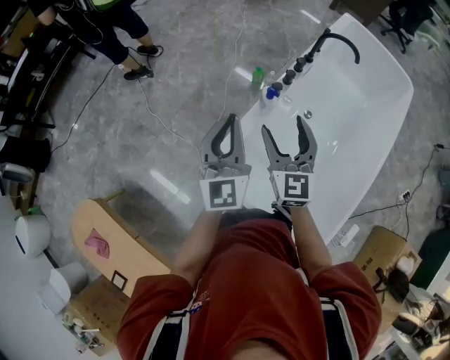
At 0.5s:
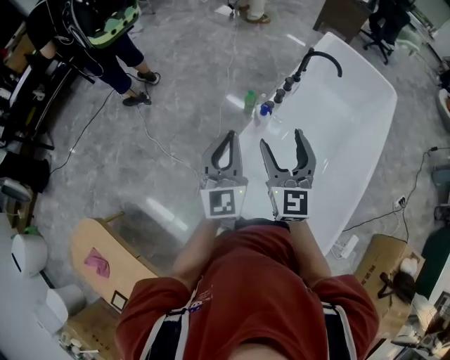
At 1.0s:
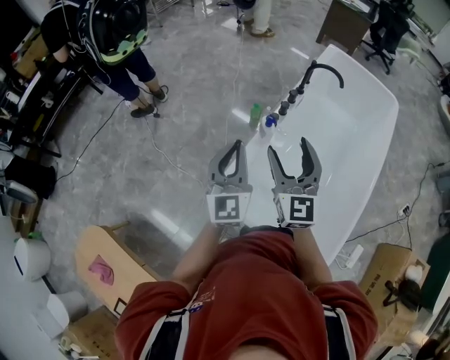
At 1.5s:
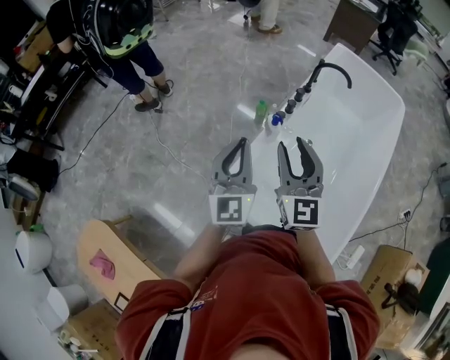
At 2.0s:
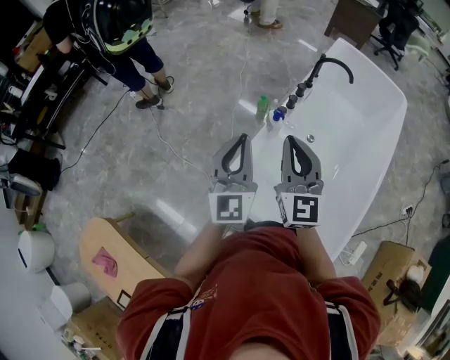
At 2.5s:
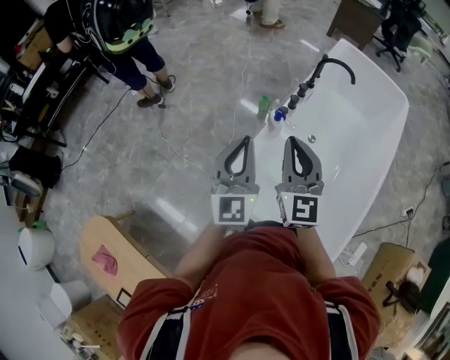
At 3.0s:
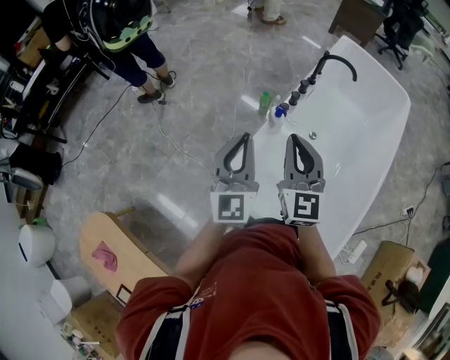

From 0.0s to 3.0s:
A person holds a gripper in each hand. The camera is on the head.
From 0.0s to 1.5s: The left gripper shifts by approximately 5 cm. The right gripper goes roughly 10 cm upward, and closes.
From 1.5s to 3.0s: The right gripper closes its fingers.

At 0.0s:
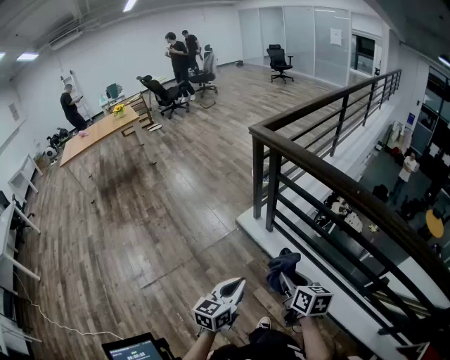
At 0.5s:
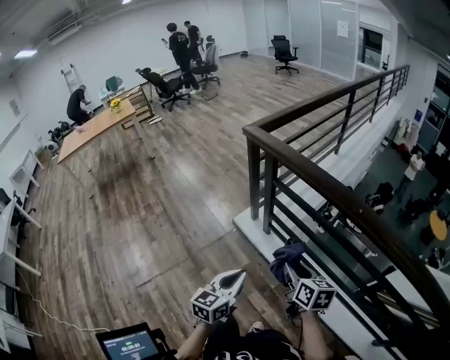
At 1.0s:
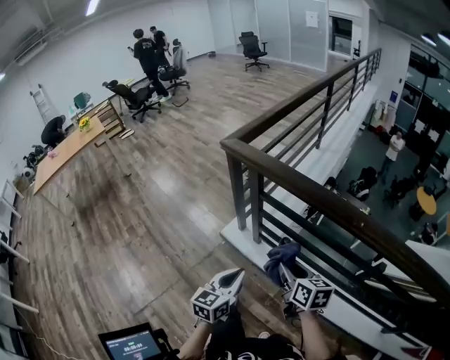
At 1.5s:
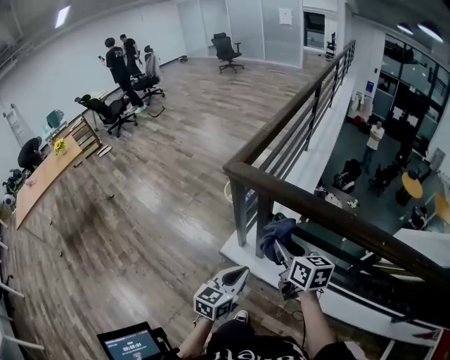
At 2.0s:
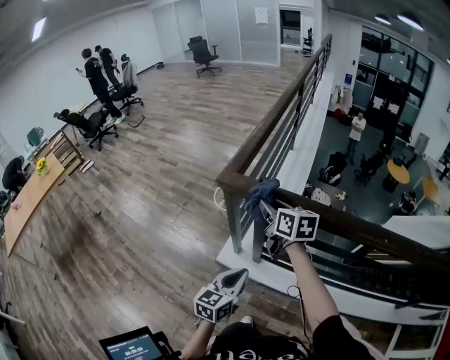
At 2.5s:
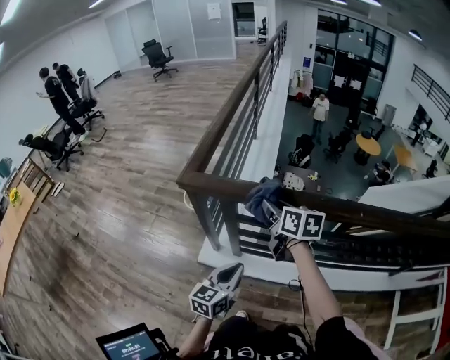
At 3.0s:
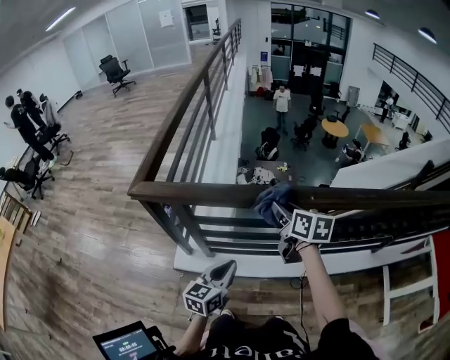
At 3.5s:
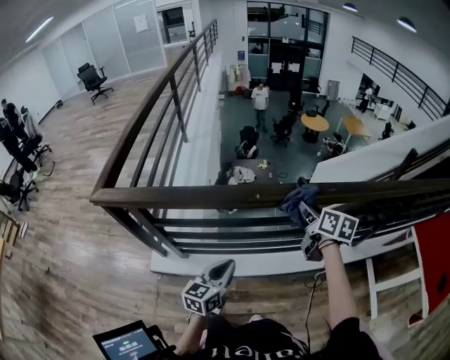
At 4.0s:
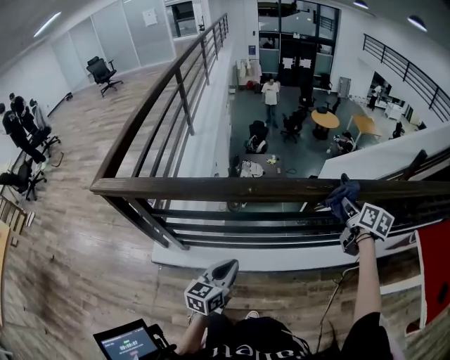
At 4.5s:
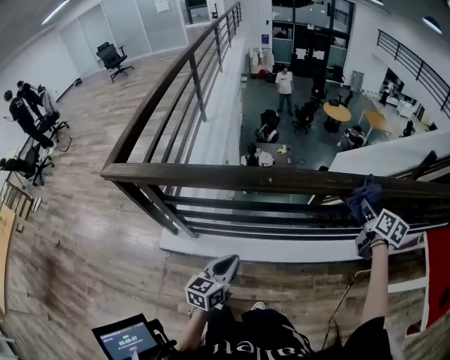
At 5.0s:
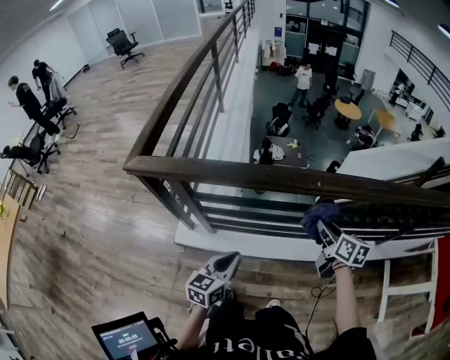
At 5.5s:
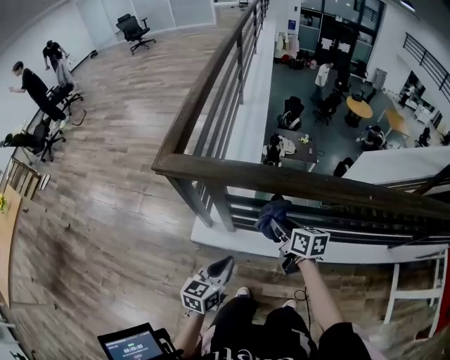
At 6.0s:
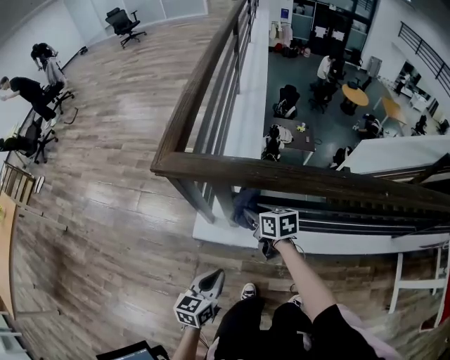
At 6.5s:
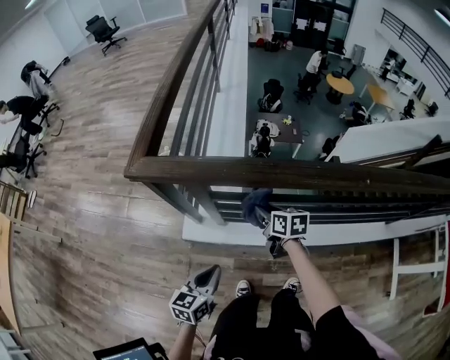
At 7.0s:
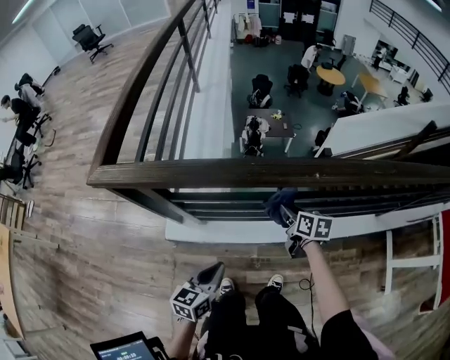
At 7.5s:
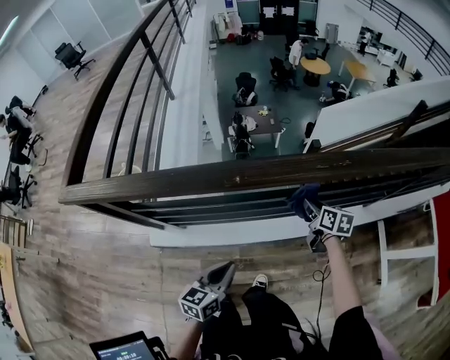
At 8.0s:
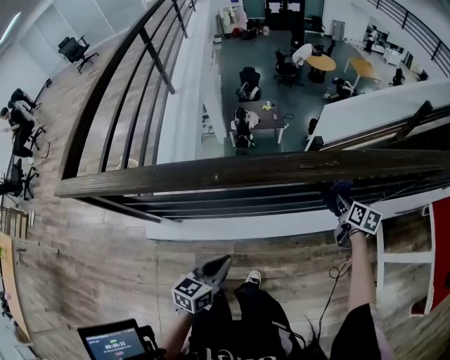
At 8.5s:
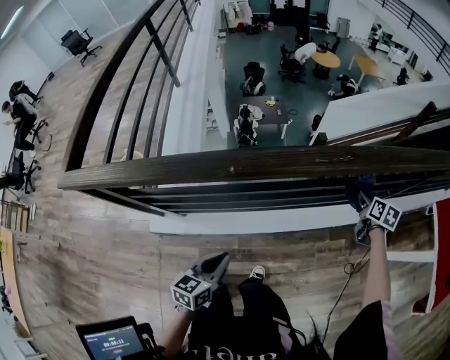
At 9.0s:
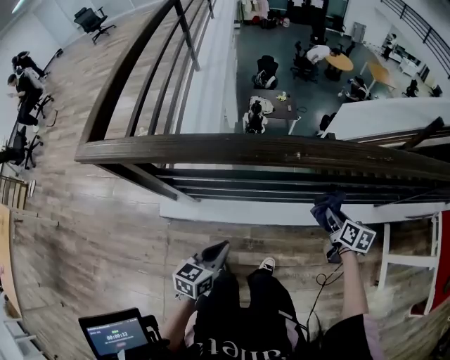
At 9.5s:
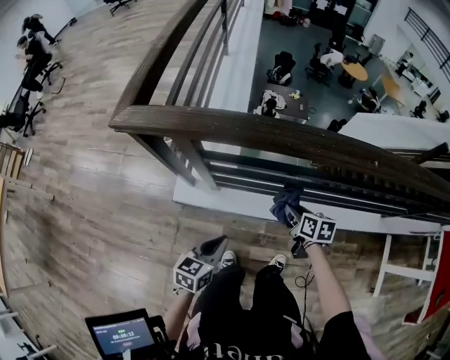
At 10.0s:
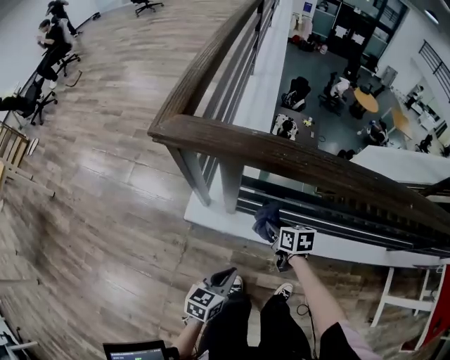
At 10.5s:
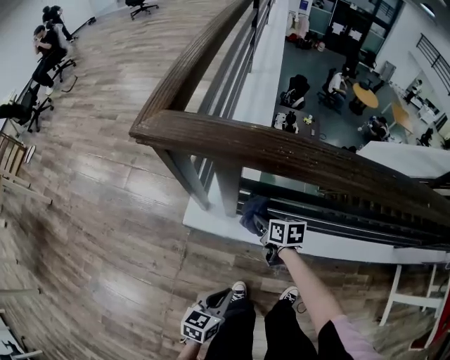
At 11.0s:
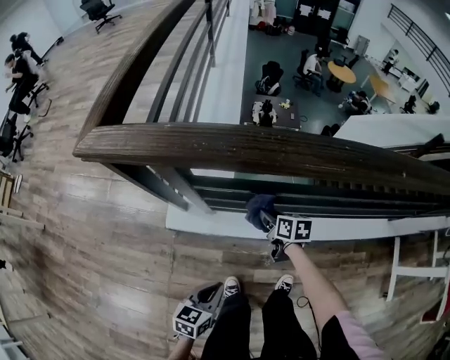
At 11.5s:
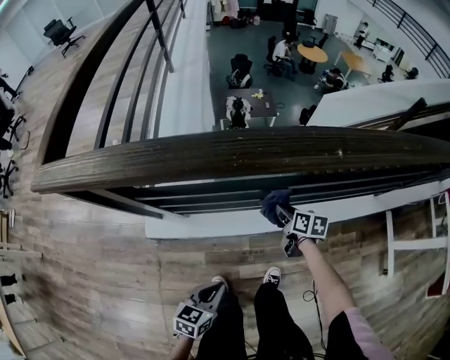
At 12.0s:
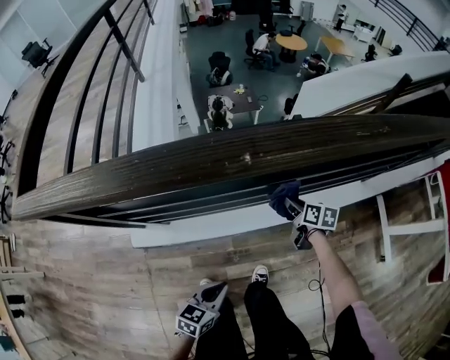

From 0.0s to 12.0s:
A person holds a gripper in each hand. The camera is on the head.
From 0.0s to 2.0s: The two grippers travel together, forward, approximately 50 cm. The left gripper changes its angle by approximately 30 degrees.
From 2.0s to 4.0s: Both grippers are carried roughly 60 cm. The right gripper swivels about 50 degrees, while the left gripper swivels some 20 degrees.
From 4.0s to 6.0s: The pair of grippers is taken roughly 60 cm. The right gripper turns by approximately 40 degrees.
From 6.0s to 8.0s: Both grippers are carried some 70 cm. The right gripper rotates approximately 40 degrees; the left gripper changes its angle by some 20 degrees.
From 8.0s to 10.0s: Both grippers are carried approximately 60 cm. The right gripper changes its angle by approximately 40 degrees.
From 10.0s to 12.0s: The right gripper shifts by roughly 50 cm, and turns by about 30 degrees, while the left gripper moves some 30 cm, and changes its angle by about 30 degrees.

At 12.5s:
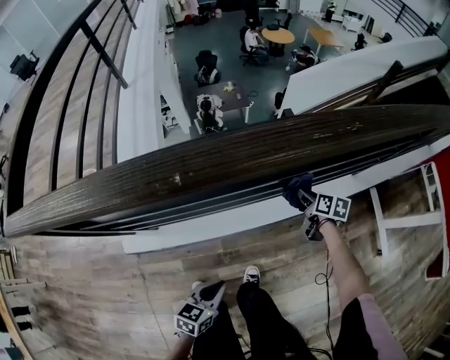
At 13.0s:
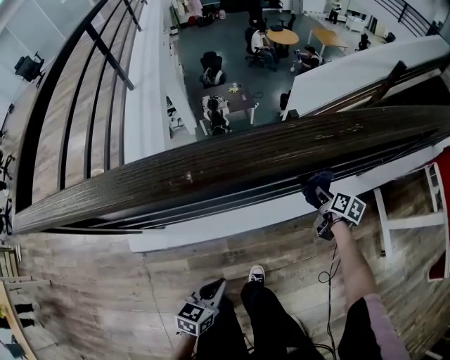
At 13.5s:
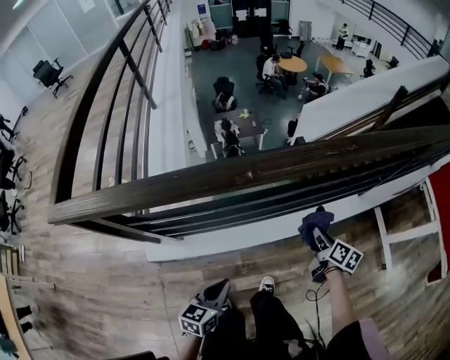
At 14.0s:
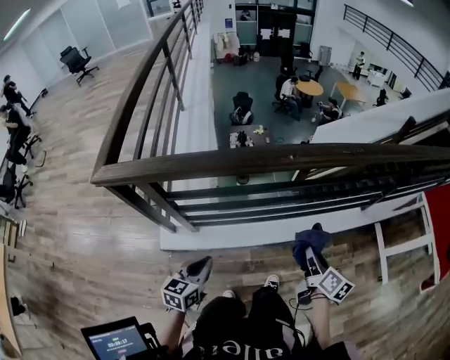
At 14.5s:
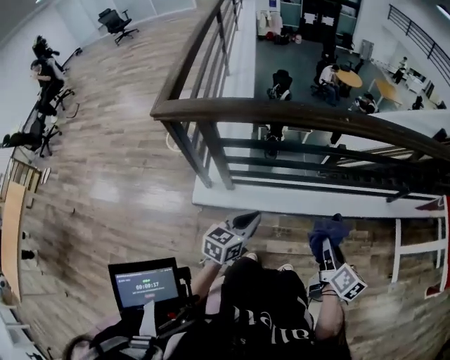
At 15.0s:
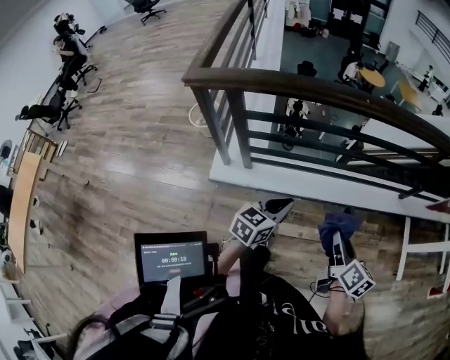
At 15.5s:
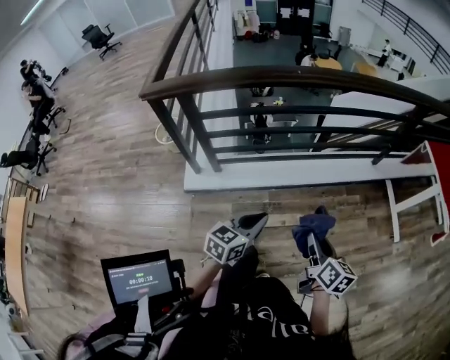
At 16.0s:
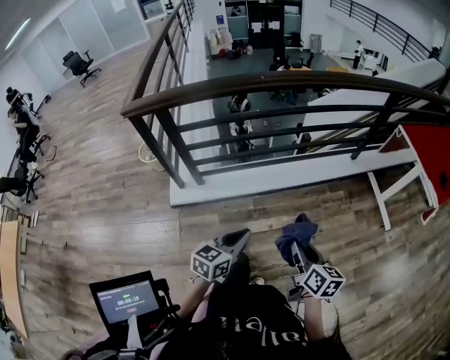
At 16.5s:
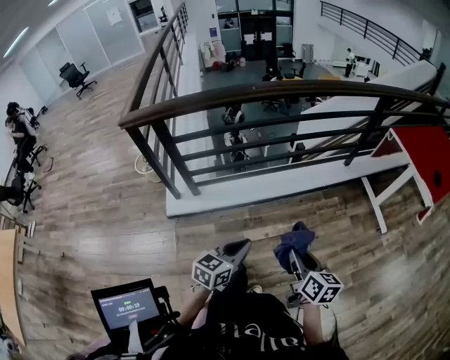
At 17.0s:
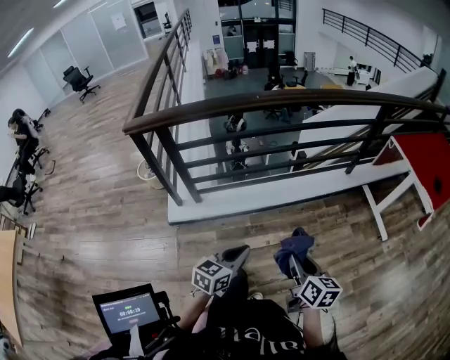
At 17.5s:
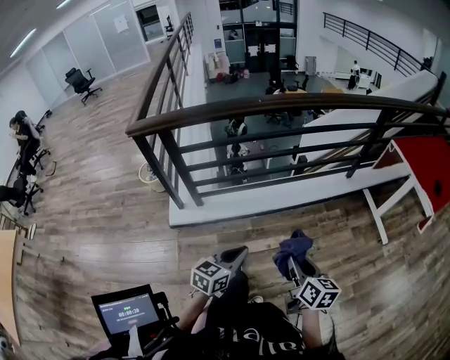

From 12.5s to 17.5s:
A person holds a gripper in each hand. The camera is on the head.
From 12.5s to 15.0s: The left gripper heads upward, backward and to the left, covering about 35 cm, and turns by some 20 degrees. The right gripper heads backward and upward, covering some 60 cm, and turns by approximately 20 degrees.
From 15.0s to 17.5s: Both grippers travel together backward and to the right, some 25 cm.

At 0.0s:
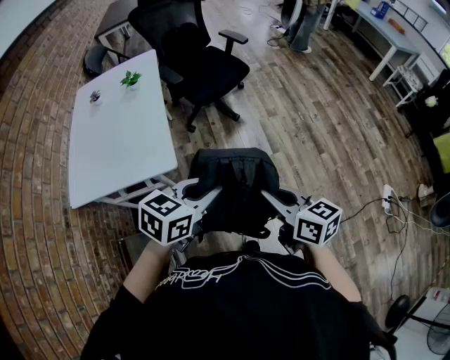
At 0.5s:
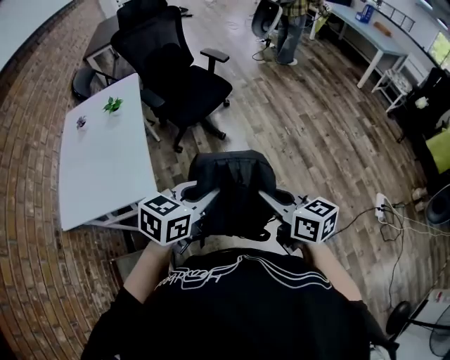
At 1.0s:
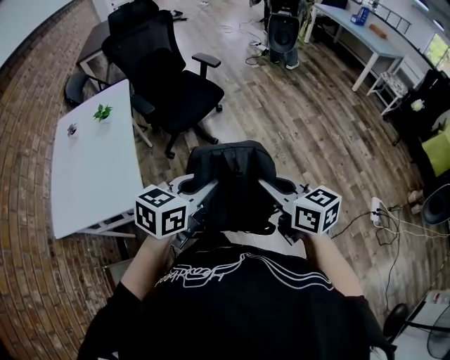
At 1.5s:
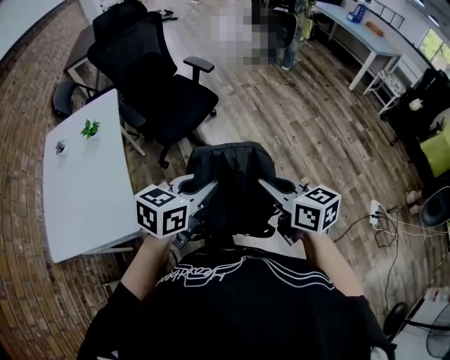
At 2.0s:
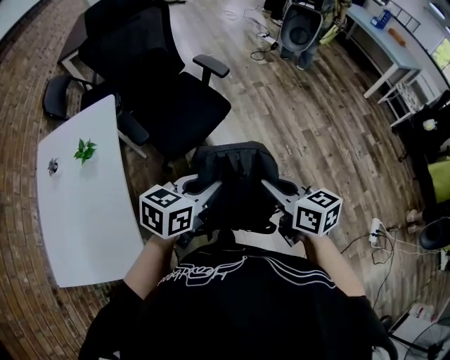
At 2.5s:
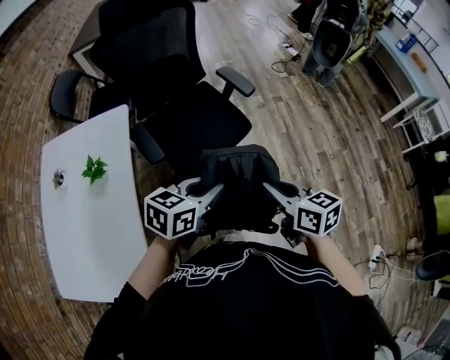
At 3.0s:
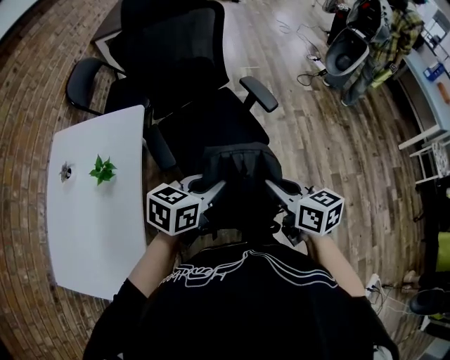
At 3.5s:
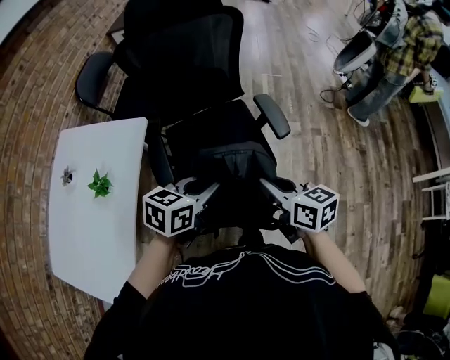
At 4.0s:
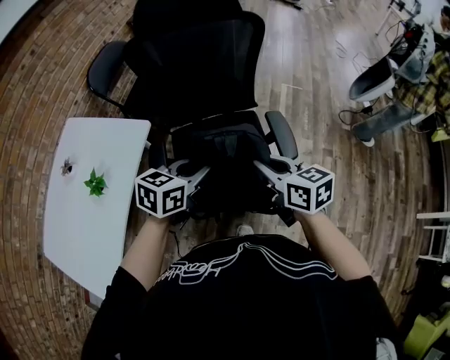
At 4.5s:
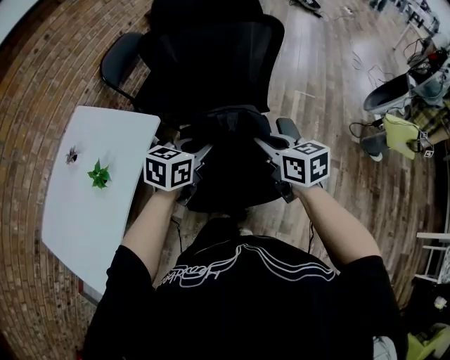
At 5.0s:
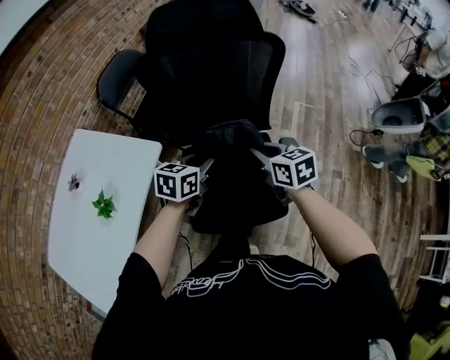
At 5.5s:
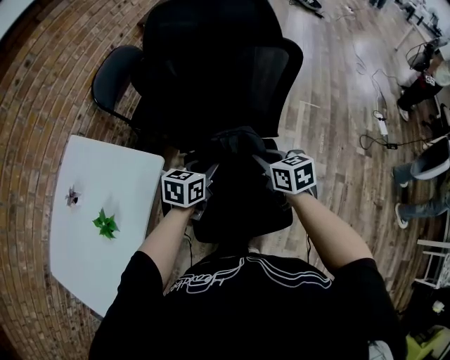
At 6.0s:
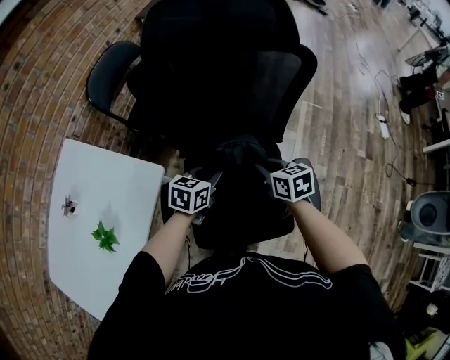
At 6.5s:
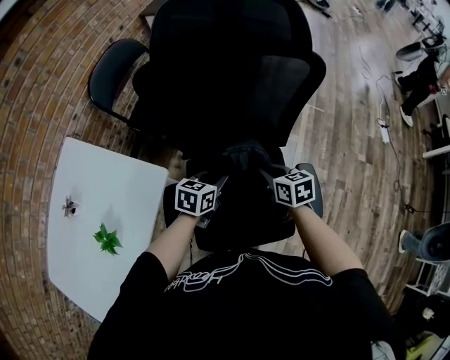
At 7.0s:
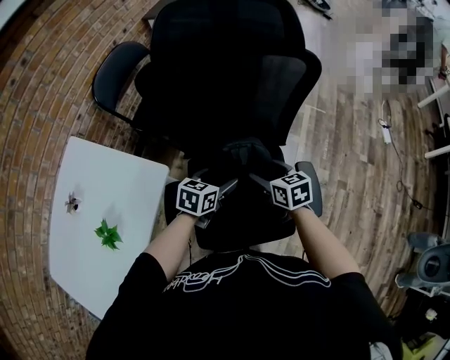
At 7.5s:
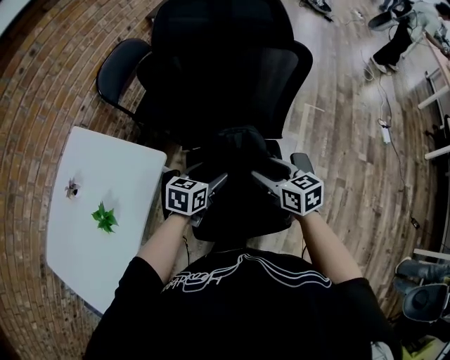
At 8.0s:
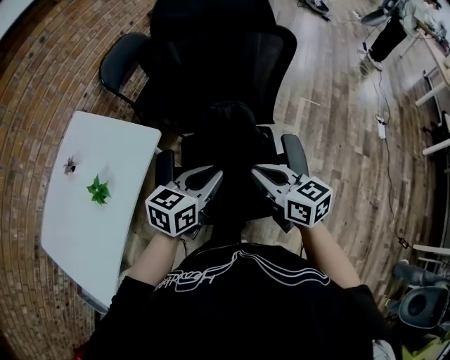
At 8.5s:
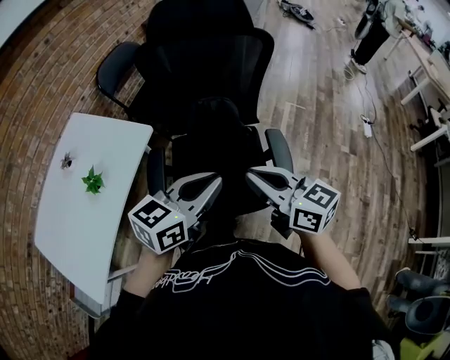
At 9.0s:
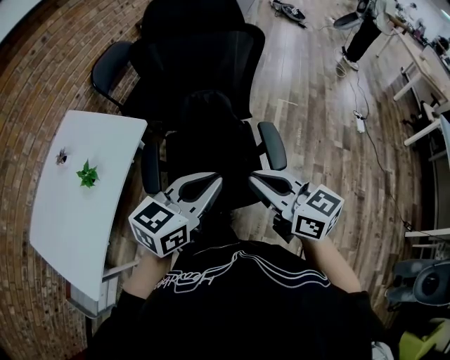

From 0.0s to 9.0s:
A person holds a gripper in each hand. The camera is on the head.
From 0.0s to 2.0s: Both grippers move forward, some 40 cm.
From 2.0s to 4.5s: The two grippers travel together, roughly 50 cm. The left gripper changes its angle by about 40 degrees; the right gripper swivels some 40 degrees.
From 4.5s to 7.0s: The left gripper shifts some 20 cm downward and forward, and opens; the right gripper moves forward and downward, some 20 cm, and opens.
From 7.0s to 9.0s: The grippers both shift backward and upward by about 35 cm. The left gripper rotates roughly 30 degrees, and closes up. The right gripper rotates roughly 30 degrees, and closes up.
